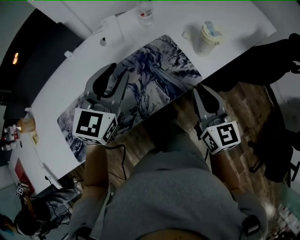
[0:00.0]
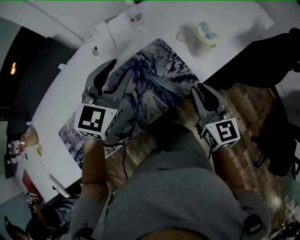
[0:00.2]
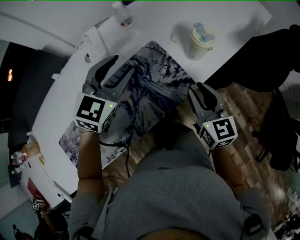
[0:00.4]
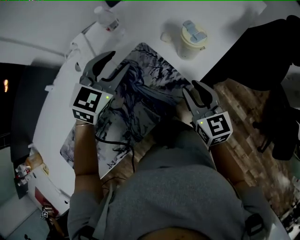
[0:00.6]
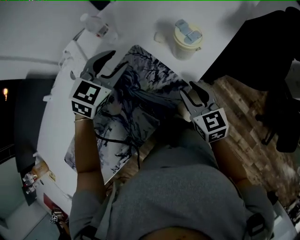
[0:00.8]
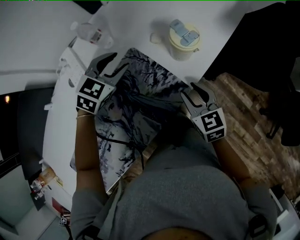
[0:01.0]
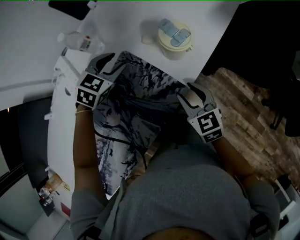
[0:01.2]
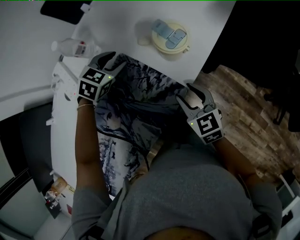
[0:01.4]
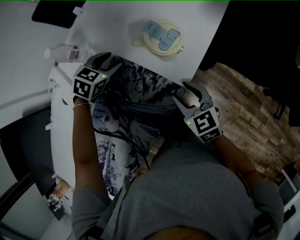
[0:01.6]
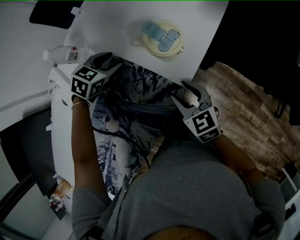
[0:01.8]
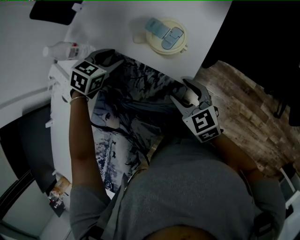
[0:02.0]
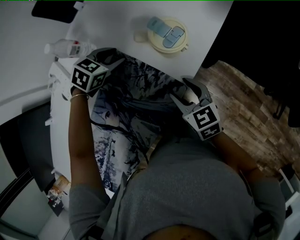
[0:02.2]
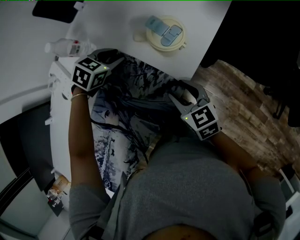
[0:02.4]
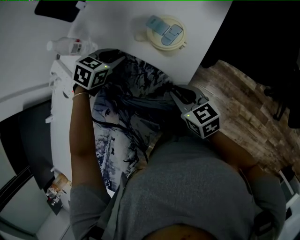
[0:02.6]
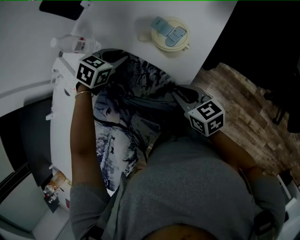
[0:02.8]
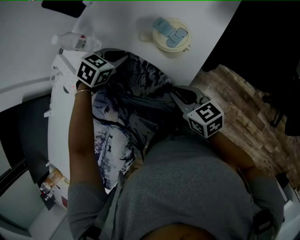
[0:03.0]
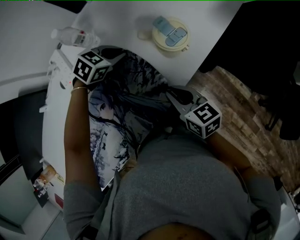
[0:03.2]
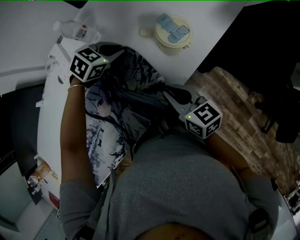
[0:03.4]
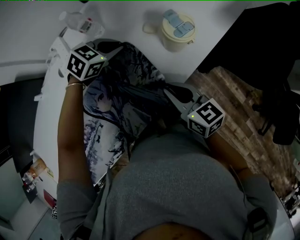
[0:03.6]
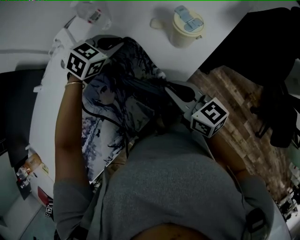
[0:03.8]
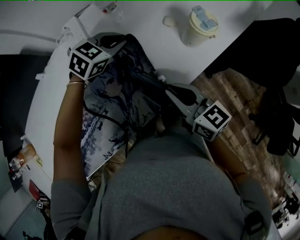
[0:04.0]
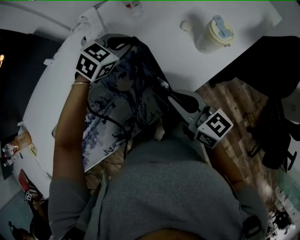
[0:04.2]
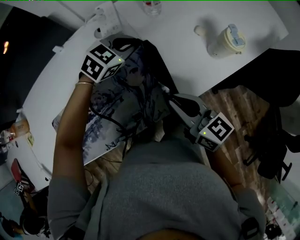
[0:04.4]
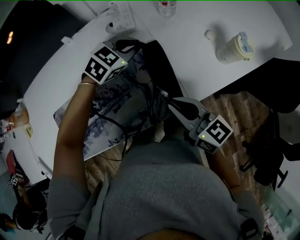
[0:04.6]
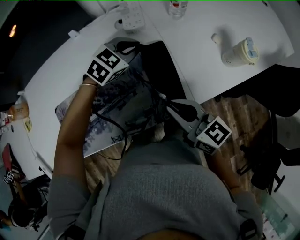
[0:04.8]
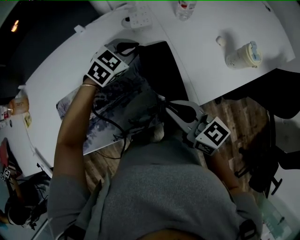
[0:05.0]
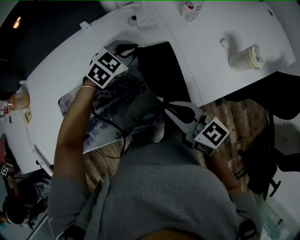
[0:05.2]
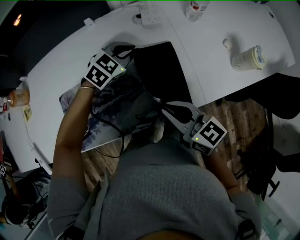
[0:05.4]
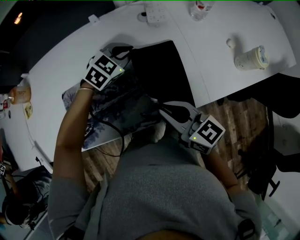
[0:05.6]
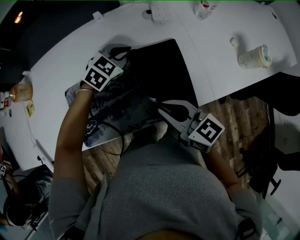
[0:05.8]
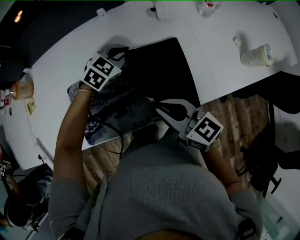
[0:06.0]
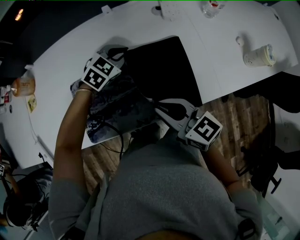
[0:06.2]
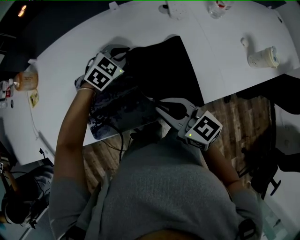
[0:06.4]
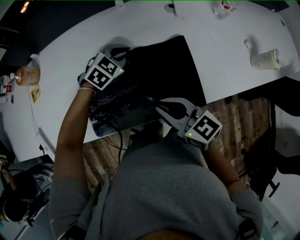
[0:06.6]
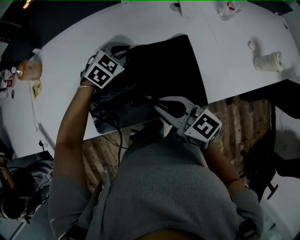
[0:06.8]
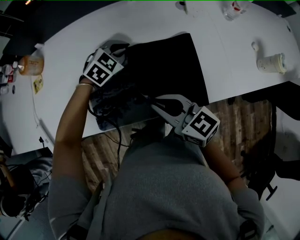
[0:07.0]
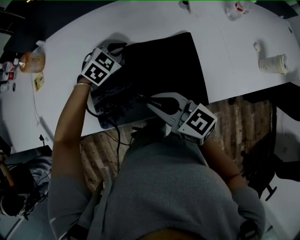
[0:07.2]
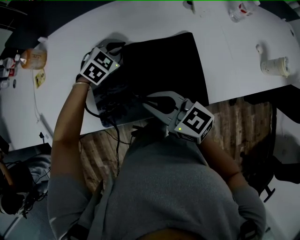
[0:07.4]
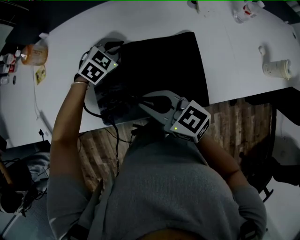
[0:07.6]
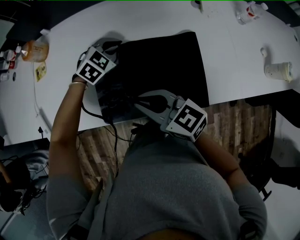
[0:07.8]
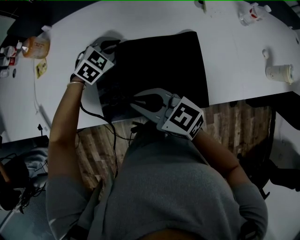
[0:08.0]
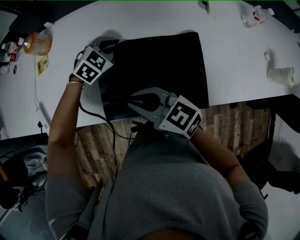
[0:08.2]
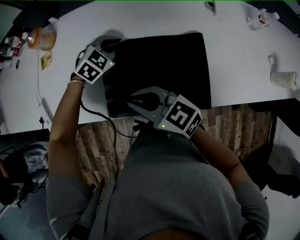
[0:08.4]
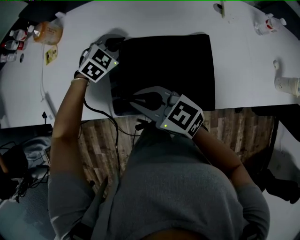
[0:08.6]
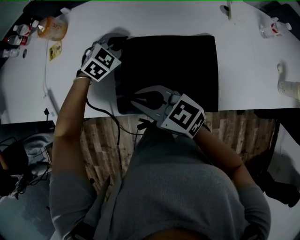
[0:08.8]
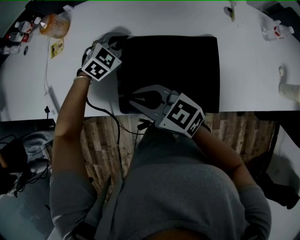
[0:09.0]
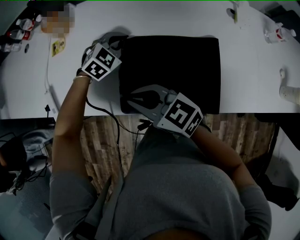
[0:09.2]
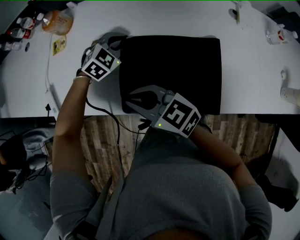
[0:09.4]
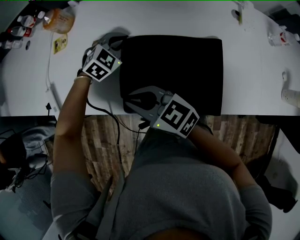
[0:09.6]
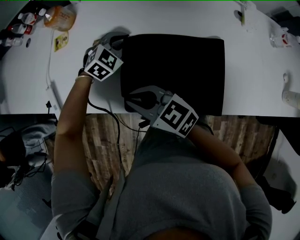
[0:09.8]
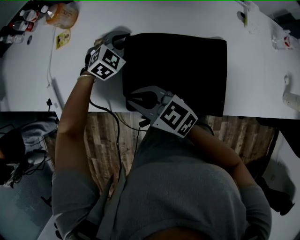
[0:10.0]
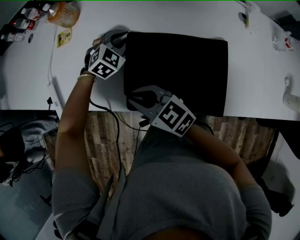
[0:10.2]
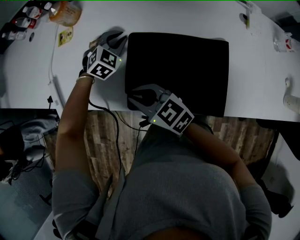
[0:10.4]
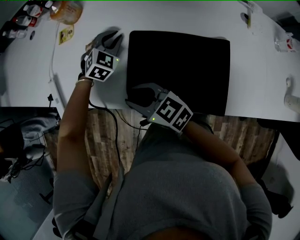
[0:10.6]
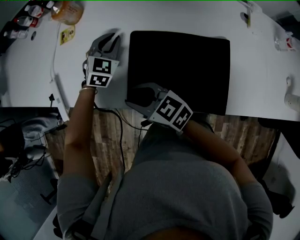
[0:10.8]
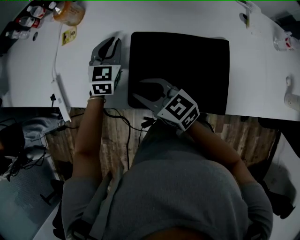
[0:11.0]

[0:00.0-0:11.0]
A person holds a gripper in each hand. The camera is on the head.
0:00.0 to 0:01.6: The right gripper is displaced downward and forward by approximately 20 cm, swivels approximately 30 degrees, and opens its fingers. Meanwhile the left gripper moves forward and downward, approximately 40 cm, points its fingers approximately 40 degrees further downward, and opens its fingers.
0:01.6 to 0:03.2: The right gripper swivels approximately 20 degrees, and closes up, while the left gripper closes up.
0:03.2 to 0:04.8: The left gripper changes place by approximately 25 cm, and rotates some 30 degrees. Meanwhile the right gripper shifts by some 25 cm, and changes its angle by about 30 degrees.
0:04.8 to 0:06.2: Both grippers move to the left, approximately 20 cm.
0:06.2 to 0:07.8: The grippers both shift to the left by about 15 cm.
0:07.8 to 0:09.4: The two grippers go roughly 10 cm to the left.
0:09.4 to 0:11.0: The left gripper shifts roughly 10 cm to the left, and swivels some 40 degrees.

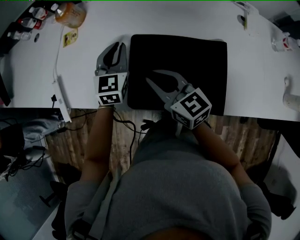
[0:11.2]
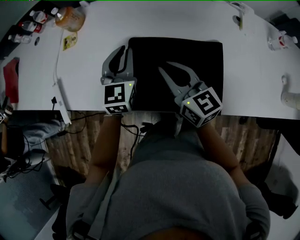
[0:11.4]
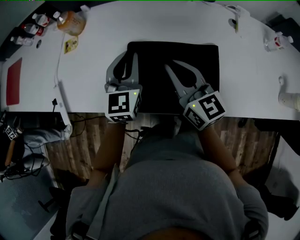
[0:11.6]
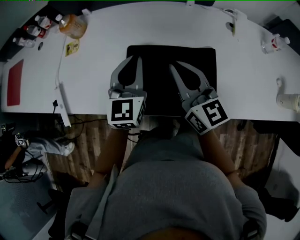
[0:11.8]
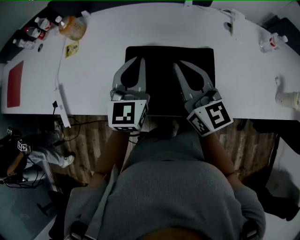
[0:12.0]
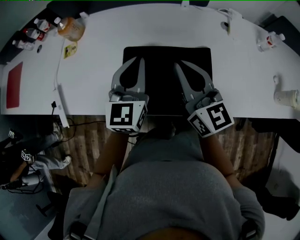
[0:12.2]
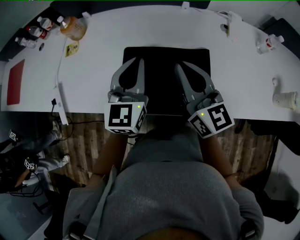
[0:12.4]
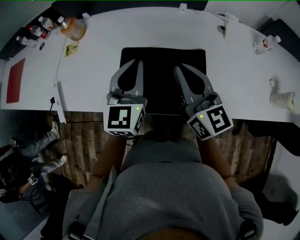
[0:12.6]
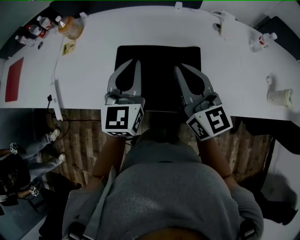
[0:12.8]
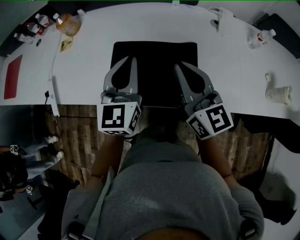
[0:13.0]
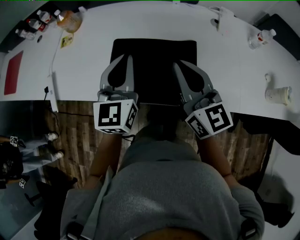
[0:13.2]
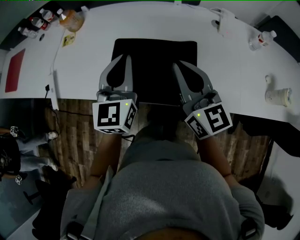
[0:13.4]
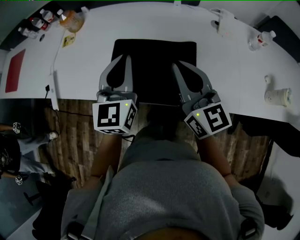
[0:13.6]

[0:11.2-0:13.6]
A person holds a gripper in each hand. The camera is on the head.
0:11.2 to 0:12.4: The left gripper heads upward, to the right and backward, covering approximately 20 cm. Meanwhile the right gripper heads to the right and upward, covering approximately 20 cm, and swivels some 30 degrees.
0:12.4 to 0:13.6: The grippers both shift backward by about 5 cm.

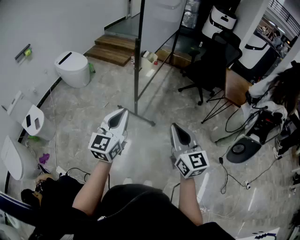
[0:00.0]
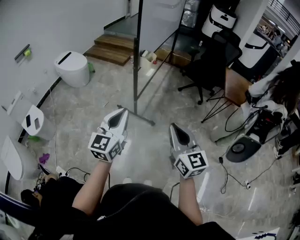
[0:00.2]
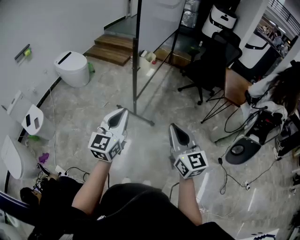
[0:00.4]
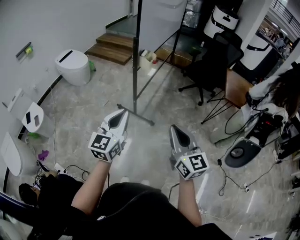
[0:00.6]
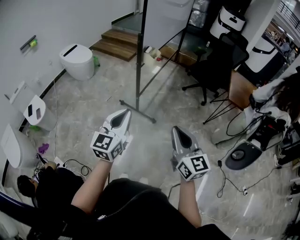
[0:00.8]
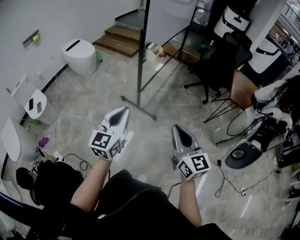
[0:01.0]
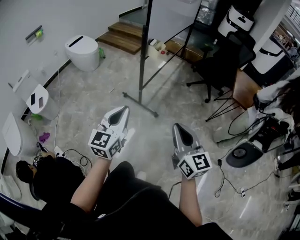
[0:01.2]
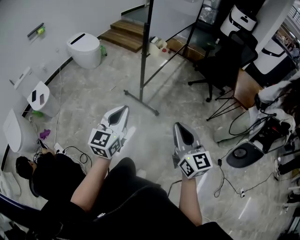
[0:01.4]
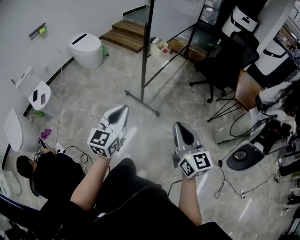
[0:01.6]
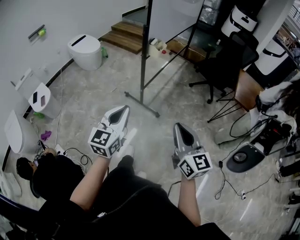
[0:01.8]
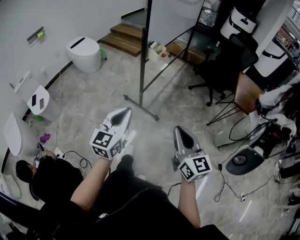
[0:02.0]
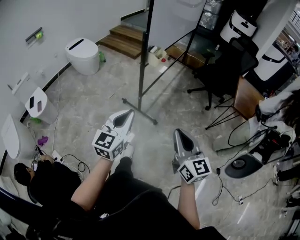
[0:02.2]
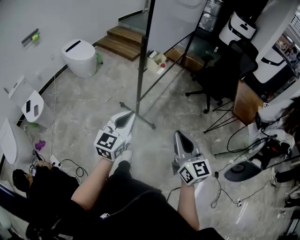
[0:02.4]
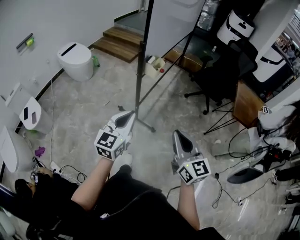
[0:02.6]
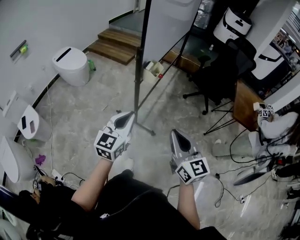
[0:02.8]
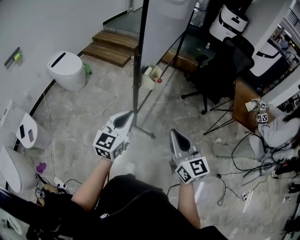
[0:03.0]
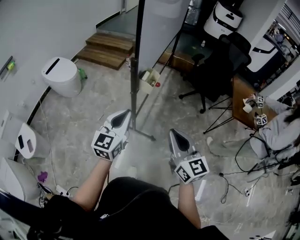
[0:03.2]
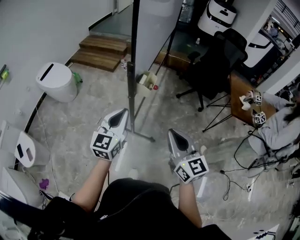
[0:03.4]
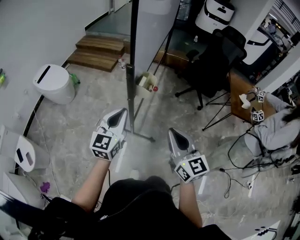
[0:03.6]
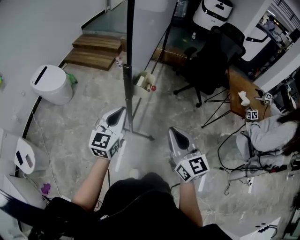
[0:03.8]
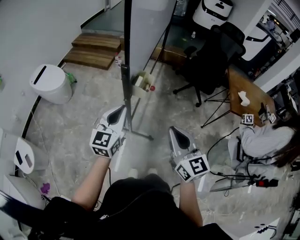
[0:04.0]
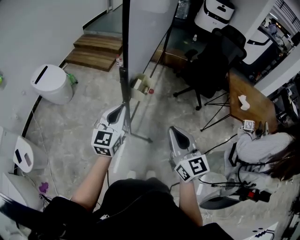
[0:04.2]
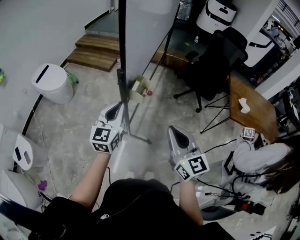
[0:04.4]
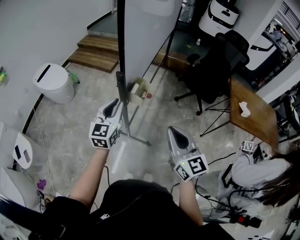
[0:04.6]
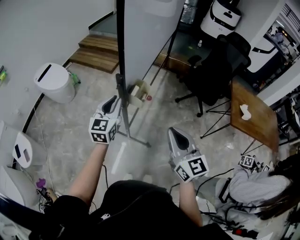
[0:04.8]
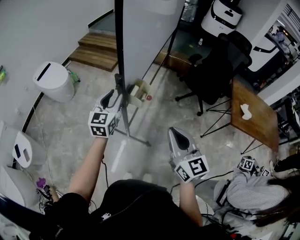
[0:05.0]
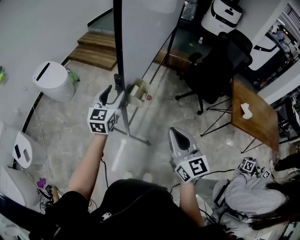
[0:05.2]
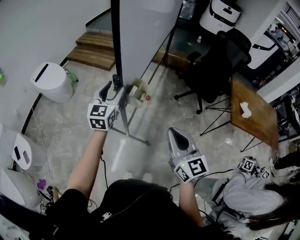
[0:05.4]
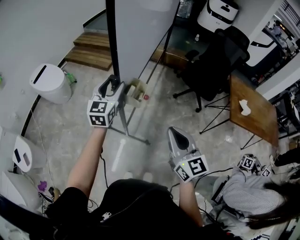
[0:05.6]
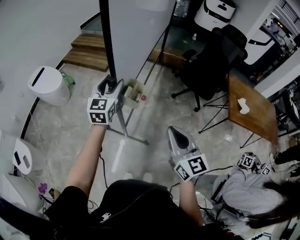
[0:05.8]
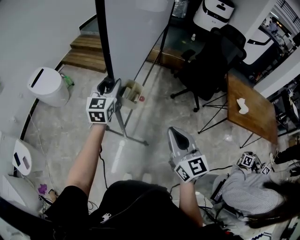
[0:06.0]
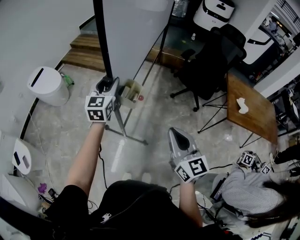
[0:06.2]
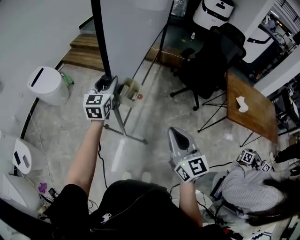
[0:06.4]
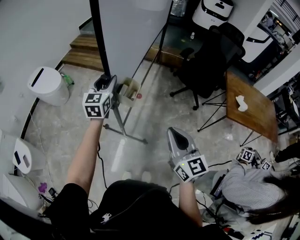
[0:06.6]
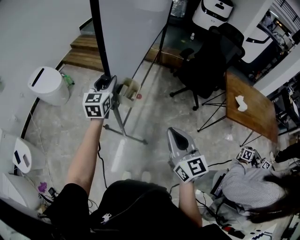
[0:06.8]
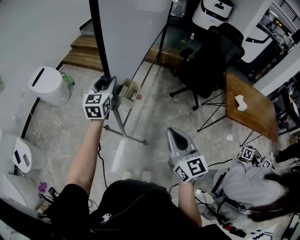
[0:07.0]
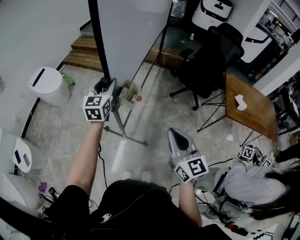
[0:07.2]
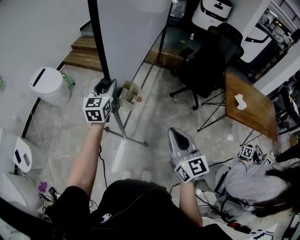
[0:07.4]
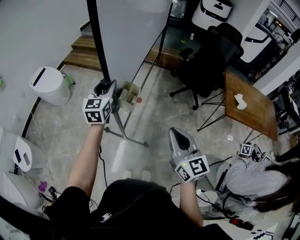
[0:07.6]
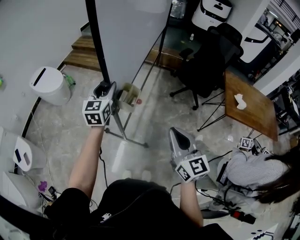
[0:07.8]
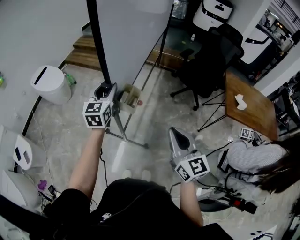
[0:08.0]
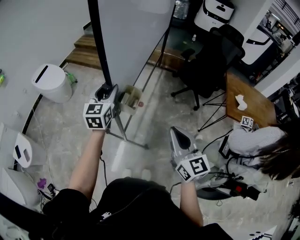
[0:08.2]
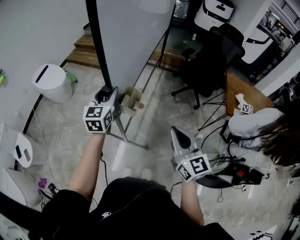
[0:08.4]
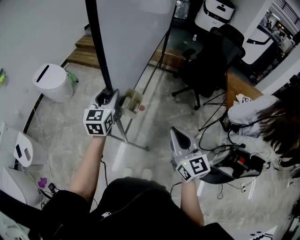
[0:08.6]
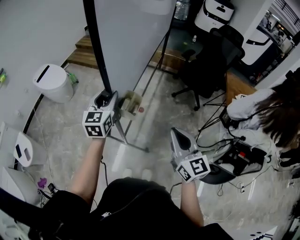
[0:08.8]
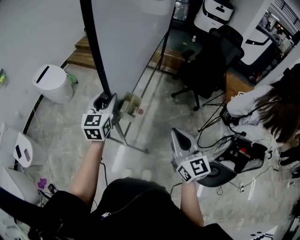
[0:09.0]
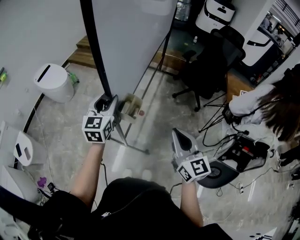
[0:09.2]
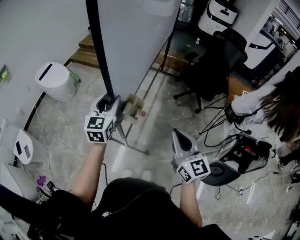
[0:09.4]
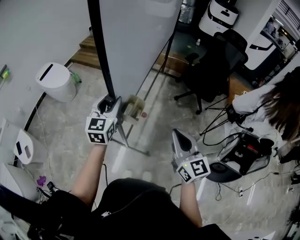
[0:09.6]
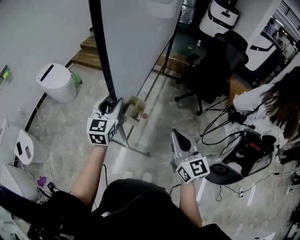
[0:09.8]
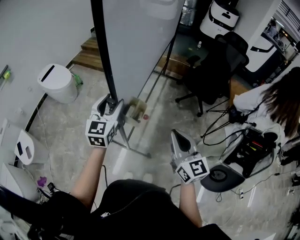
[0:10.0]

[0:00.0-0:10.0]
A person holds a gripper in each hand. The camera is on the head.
0:00.0 to 0:01.4: The left gripper is displaced downward by about 5 cm, while the right gripper travels to the right by some 5 cm.
0:01.4 to 0:02.8: The two grippers go about 25 cm forward.
0:02.8 to 0:04.2: Both grippers travel together forward, some 15 cm.
0:04.2 to 0:05.8: The left gripper moves forward, roughly 15 cm, and opens; the right gripper heads forward, covering about 5 cm.
0:05.8 to 0:07.2: The right gripper changes place by approximately 5 cm.
0:07.2 to 0:08.6: The left gripper shifts some 10 cm backward.
0:08.6 to 0:10.0: The grippers make only small movements.
